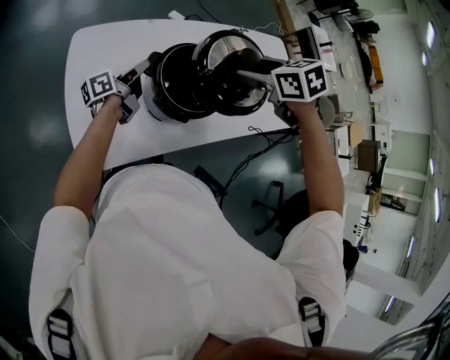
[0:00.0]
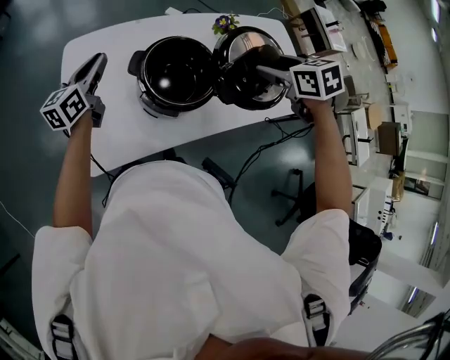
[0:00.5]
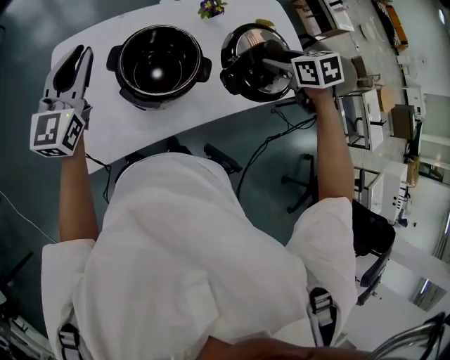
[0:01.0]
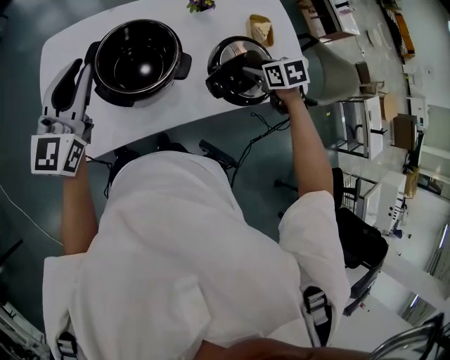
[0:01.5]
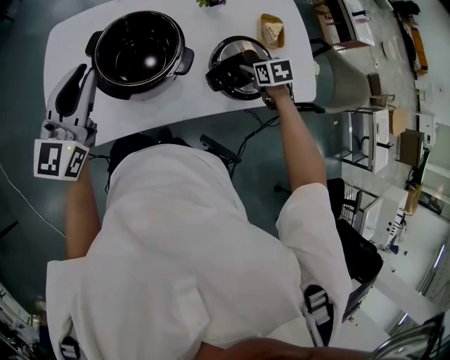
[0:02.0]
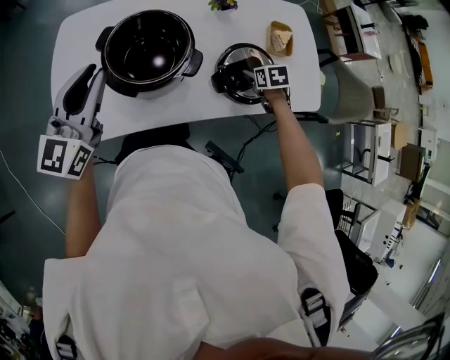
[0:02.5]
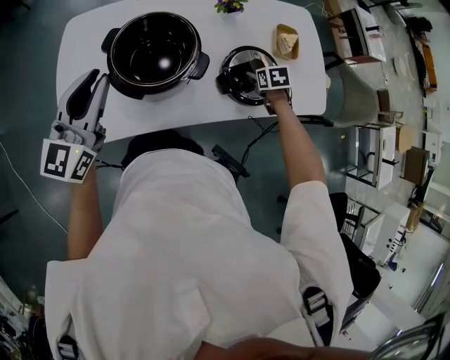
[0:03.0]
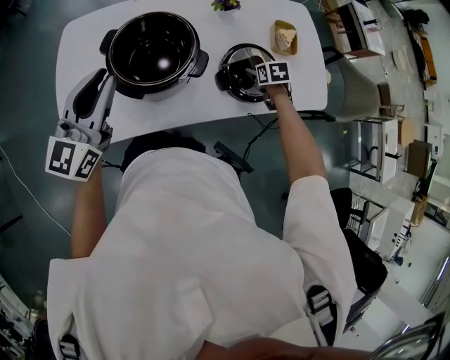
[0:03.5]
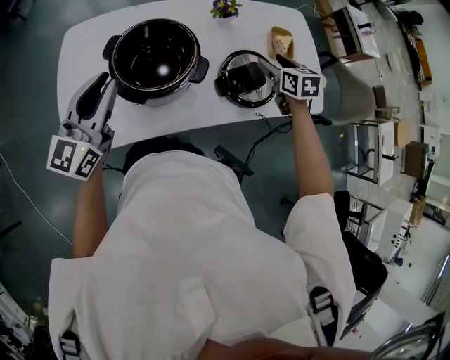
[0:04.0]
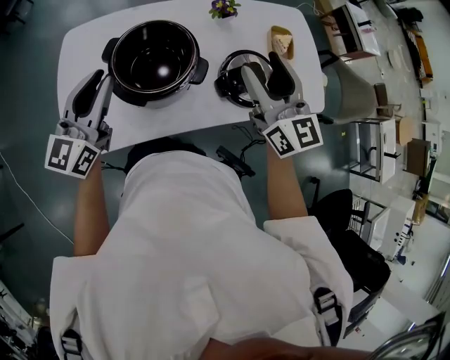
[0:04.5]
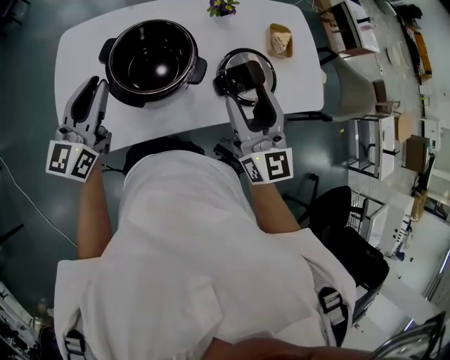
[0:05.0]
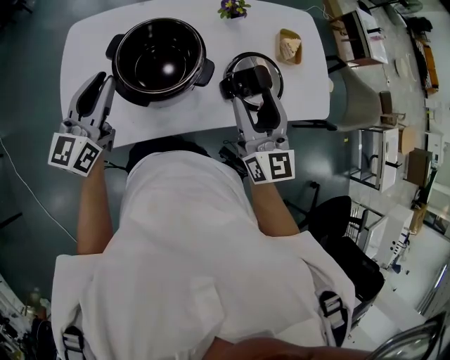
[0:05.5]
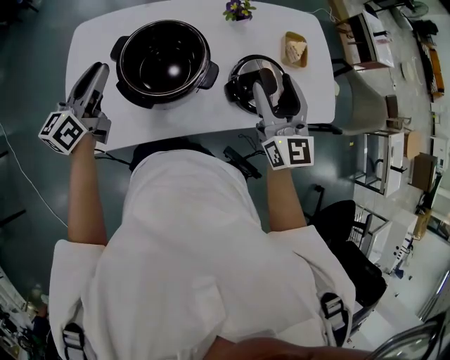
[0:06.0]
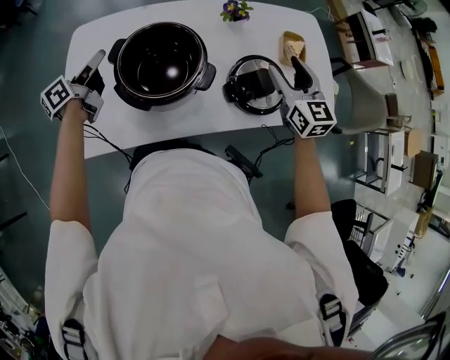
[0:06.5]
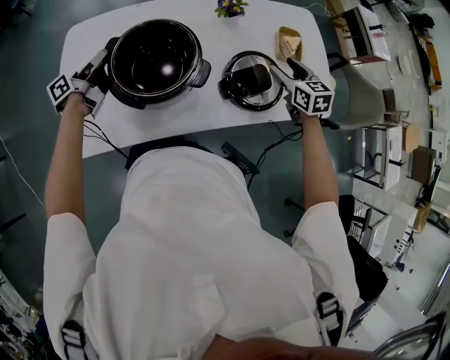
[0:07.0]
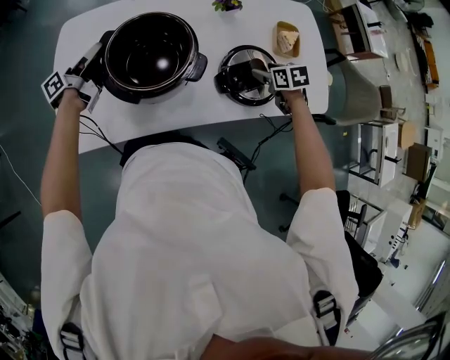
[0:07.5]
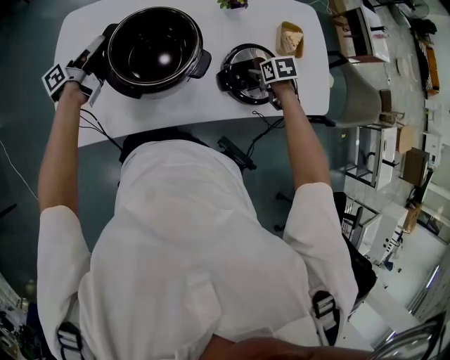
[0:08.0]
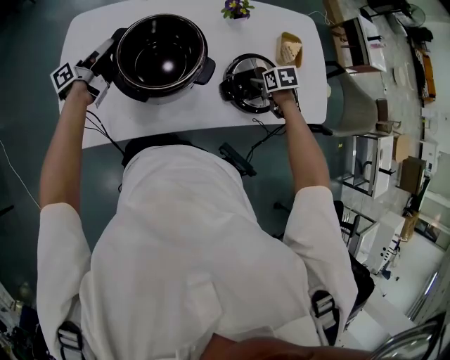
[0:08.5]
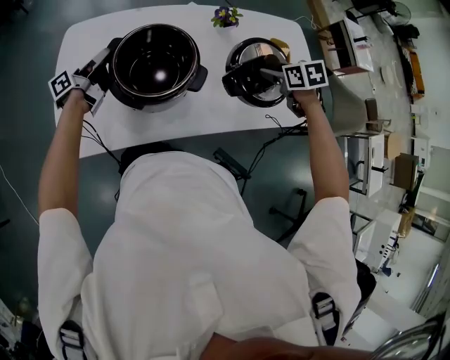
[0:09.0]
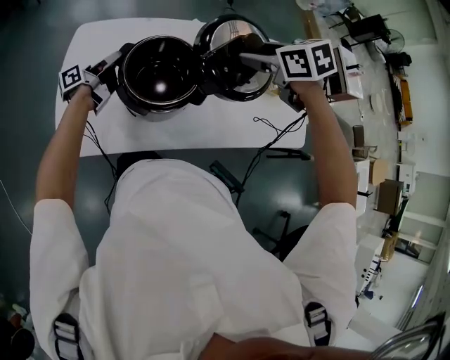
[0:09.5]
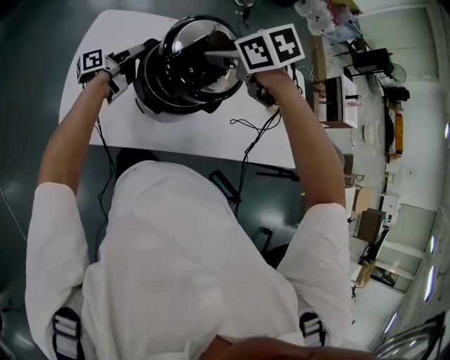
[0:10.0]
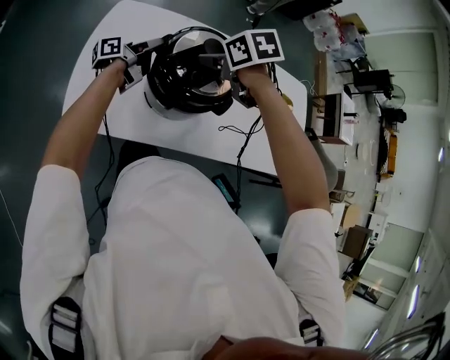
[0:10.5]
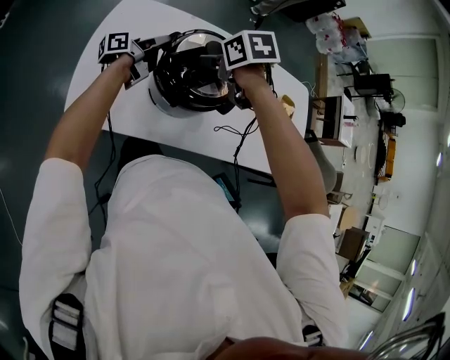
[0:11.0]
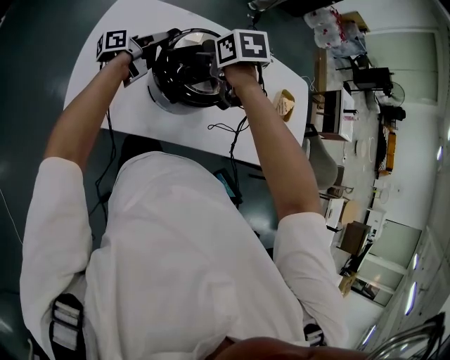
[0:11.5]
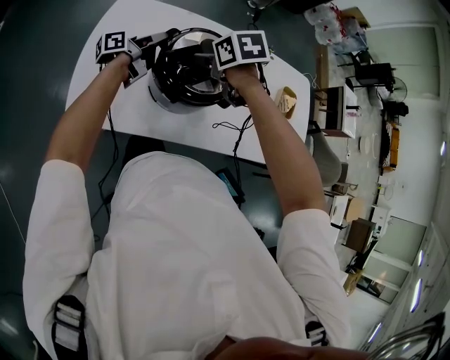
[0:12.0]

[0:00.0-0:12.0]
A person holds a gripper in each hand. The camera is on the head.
0:00.0 to 0:02.0: The right gripper is displaced to the right and downward by about 40 cm. The left gripper heads upward, backward and to the right, covering about 25 cm, and rotates around the line of its fingers by roughly 80 degrees, clockwise from behind.
0:02.0 to 0:04.0: The right gripper moves upward, roughly 10 cm, and changes its angle by about 20 degrees.
0:04.0 to 0:06.0: The right gripper moves upward, backward and to the left, about 20 cm, and tips its fingers upward by roughly 40 degrees, while the left gripper moves to the left, forward and downward, roughly 10 cm, and turns by roughly 30 degrees.
0:06.0 to 0:08.0: The left gripper shifts some 15 cm downward and forward, and twists about 50 degrees counterclockwise, seen from behind; the right gripper shifts some 30 cm downward, and points its fingers some 70 degrees further downward.
0:08.0 to 0:10.0: The right gripper travels to the left and upward by some 40 cm, and turns by approximately 40 degrees.
0:10.0 to 0:12.0: The right gripper is displaced downward by roughly 10 cm.

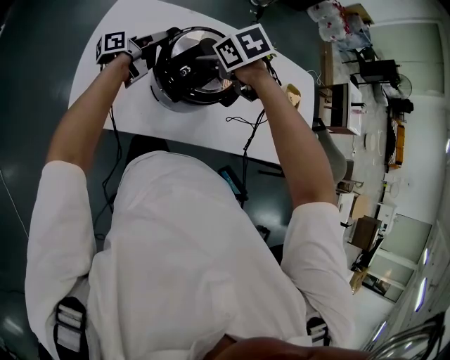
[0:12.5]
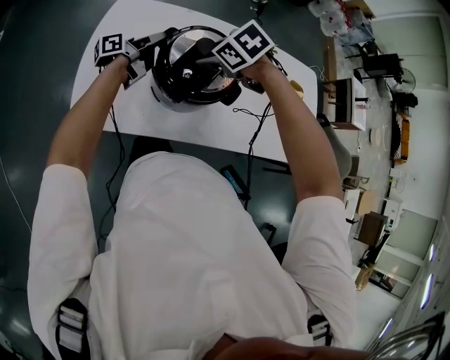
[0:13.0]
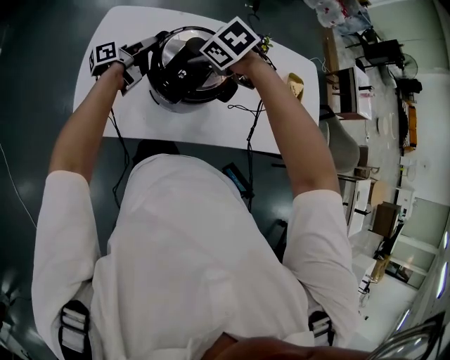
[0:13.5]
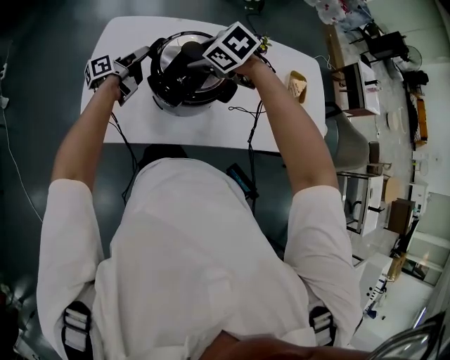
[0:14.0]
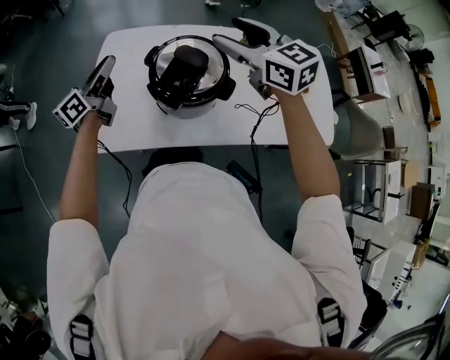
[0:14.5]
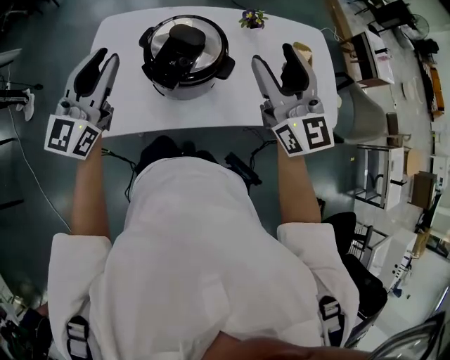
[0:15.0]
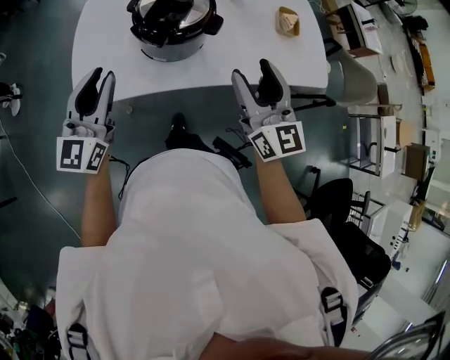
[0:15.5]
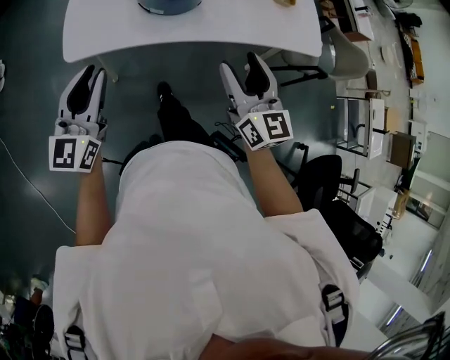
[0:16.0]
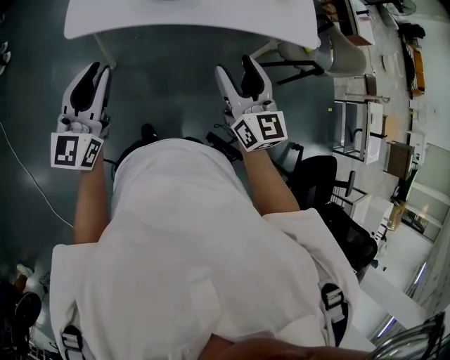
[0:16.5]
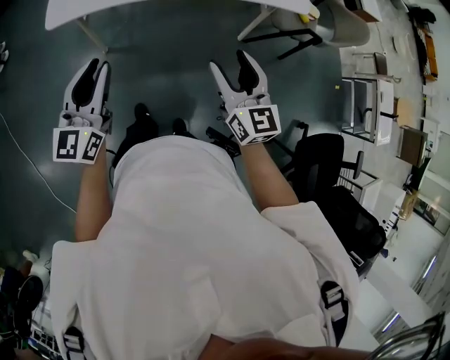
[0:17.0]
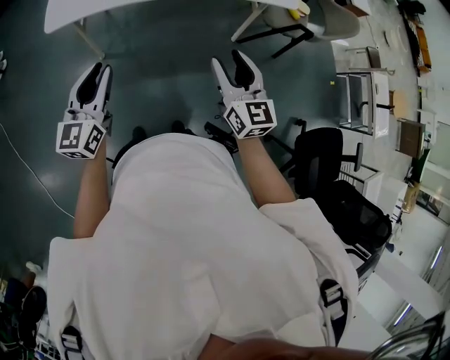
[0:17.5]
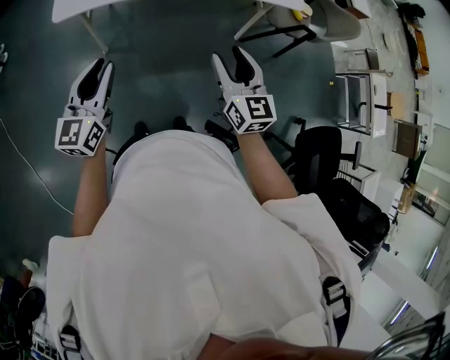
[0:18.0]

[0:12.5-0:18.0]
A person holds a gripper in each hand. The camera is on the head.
0:12.5 to 0:14.5: The left gripper is displaced upward, to the left and backward by approximately 15 cm, and turns by some 40 degrees. The right gripper is displaced upward by about 20 cm, and tilts its fingers roughly 50 degrees upward.
0:14.5 to 0:16.0: The grippers both shift backward by about 40 cm. The right gripper rotates some 30 degrees. Meanwhile the left gripper changes its angle by about 40 degrees.
0:16.0 to 0:18.0: The two grippers go roughly 25 cm backward and to the right.

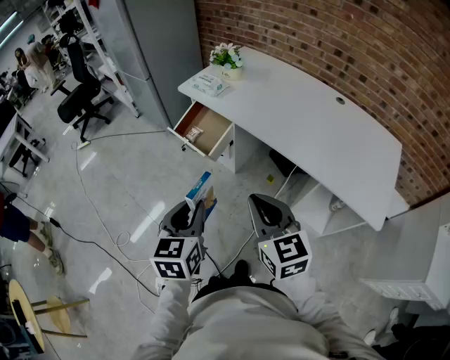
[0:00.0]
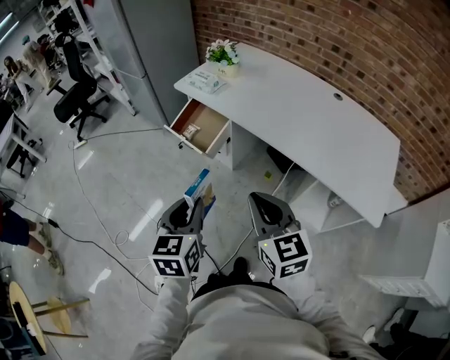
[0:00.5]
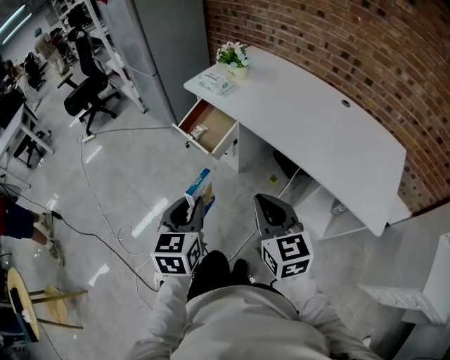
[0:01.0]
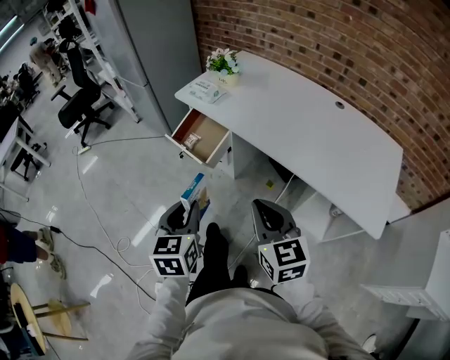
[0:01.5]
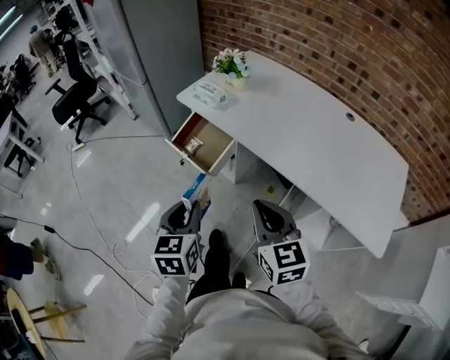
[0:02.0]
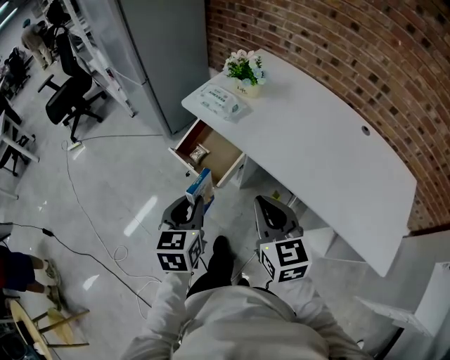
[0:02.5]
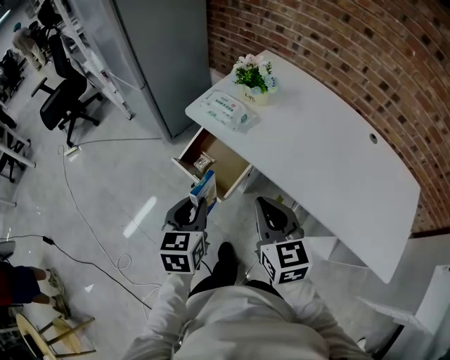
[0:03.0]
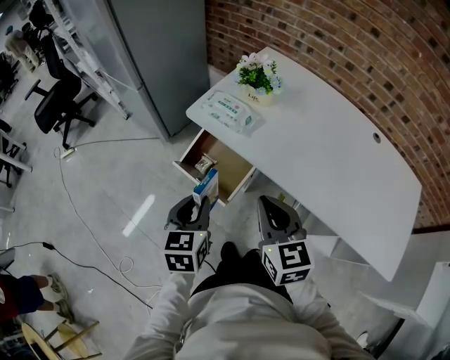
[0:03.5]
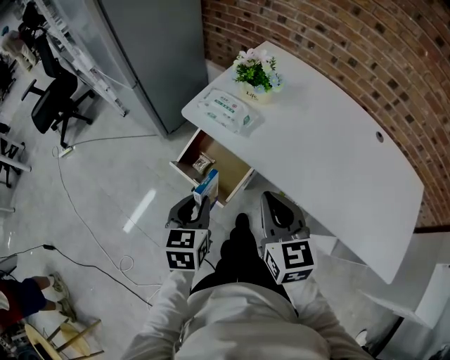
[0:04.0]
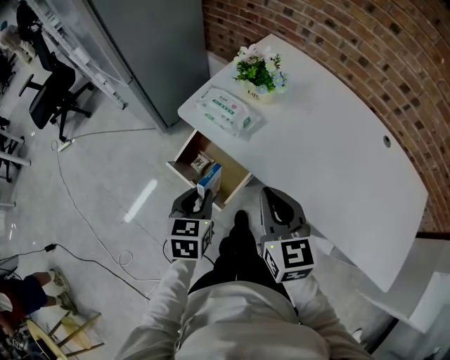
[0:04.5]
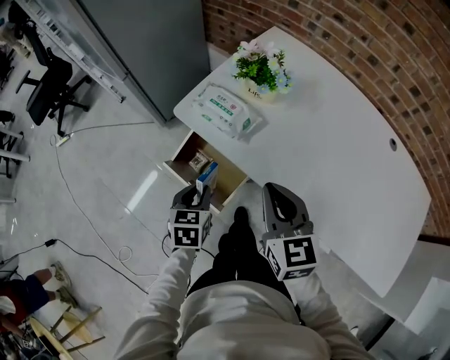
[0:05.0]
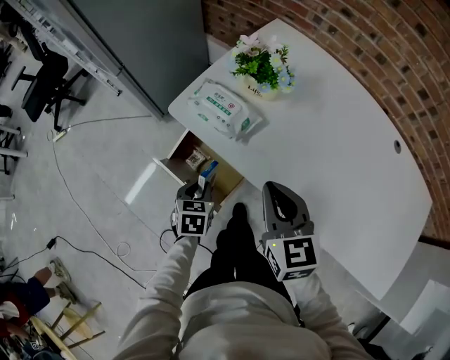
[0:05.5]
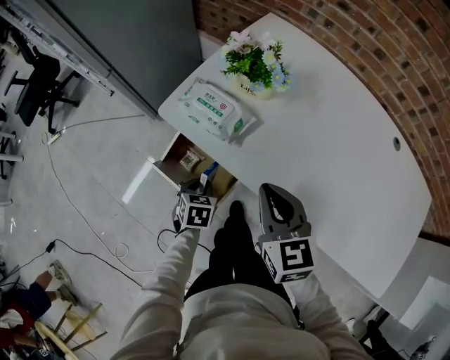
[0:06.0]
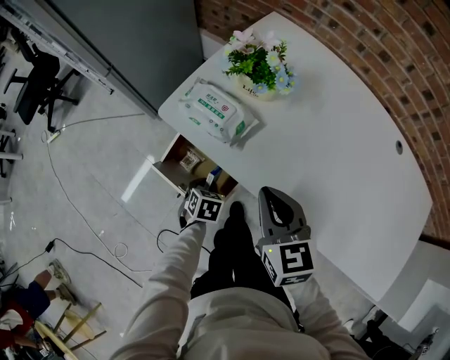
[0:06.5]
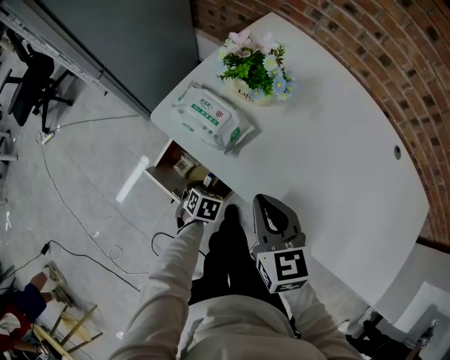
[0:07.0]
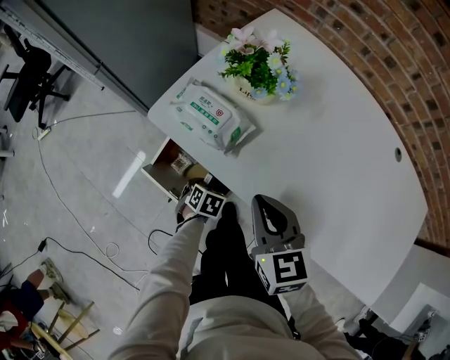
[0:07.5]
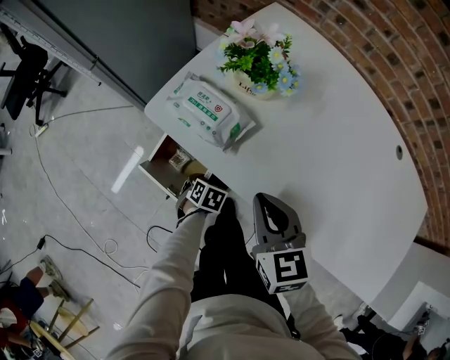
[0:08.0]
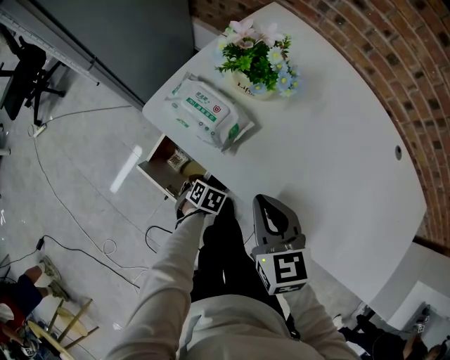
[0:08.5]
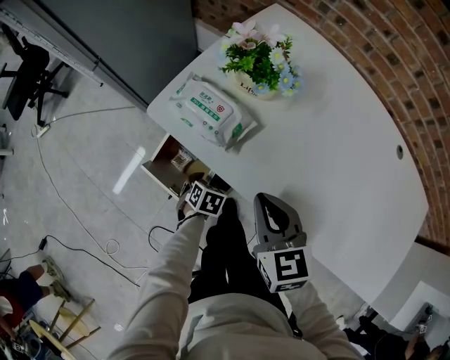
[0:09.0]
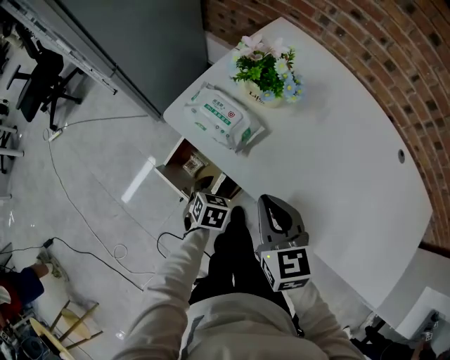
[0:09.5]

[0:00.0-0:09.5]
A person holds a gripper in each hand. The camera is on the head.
0:00.0 to 0:02.0: The grippers both shift forward by about 10 cm.
0:02.0 to 0:04.0: The two grippers go about 25 cm forward.
0:04.0 to 0:05.5: The right gripper goes some 10 cm forward. Meanwhile the left gripper goes approximately 20 cm downward and forward.
0:05.5 to 0:07.5: The right gripper changes place by about 5 cm, while the left gripper heads downward, covering some 15 cm, and changes its angle by roughly 20 degrees.
0:07.5 to 0:09.5: The left gripper is displaced upward by about 10 cm.
